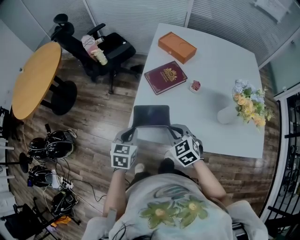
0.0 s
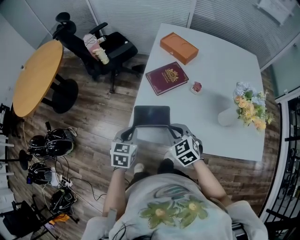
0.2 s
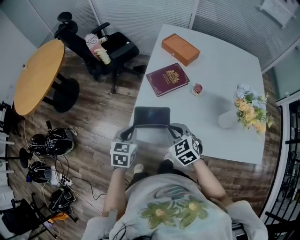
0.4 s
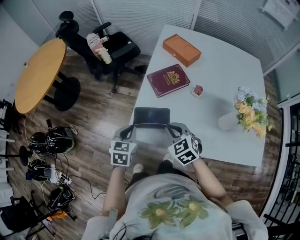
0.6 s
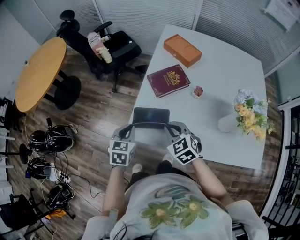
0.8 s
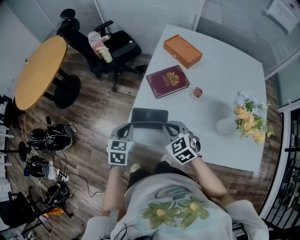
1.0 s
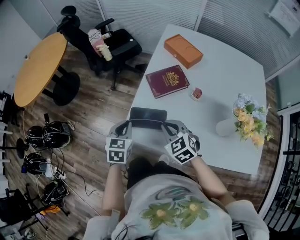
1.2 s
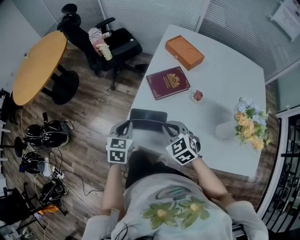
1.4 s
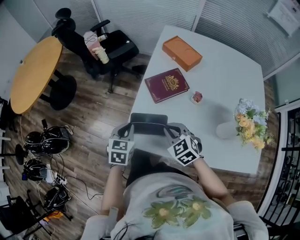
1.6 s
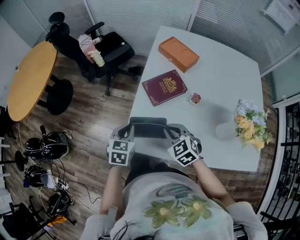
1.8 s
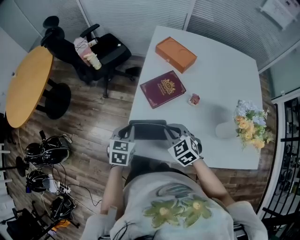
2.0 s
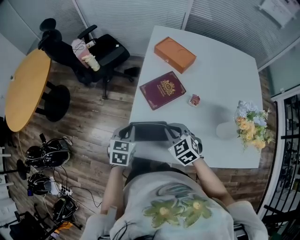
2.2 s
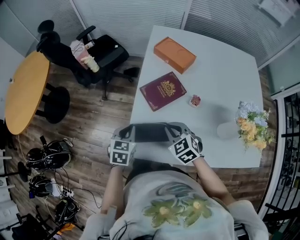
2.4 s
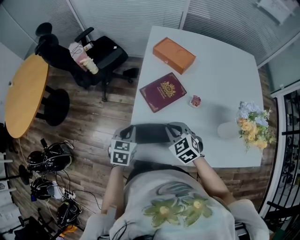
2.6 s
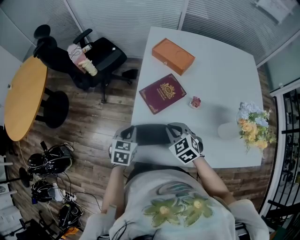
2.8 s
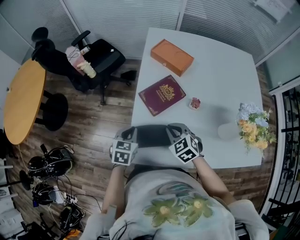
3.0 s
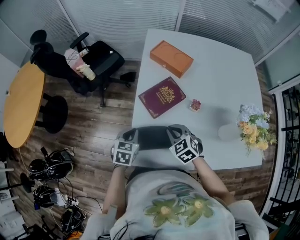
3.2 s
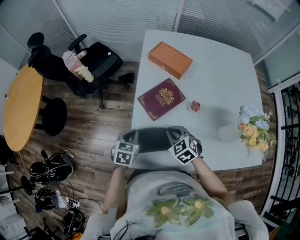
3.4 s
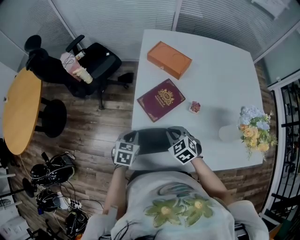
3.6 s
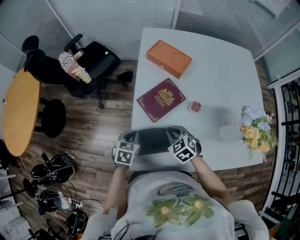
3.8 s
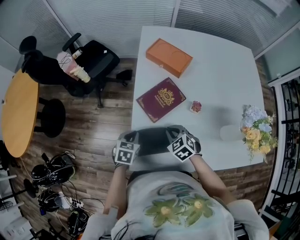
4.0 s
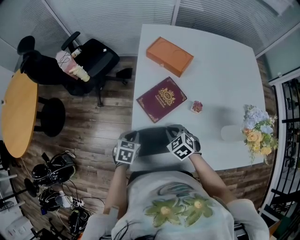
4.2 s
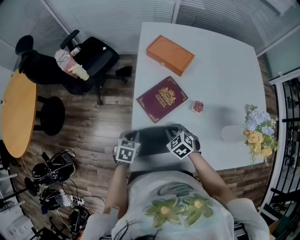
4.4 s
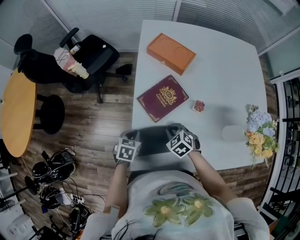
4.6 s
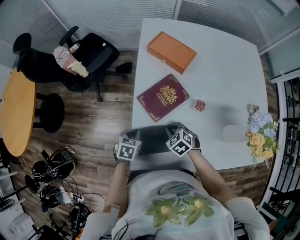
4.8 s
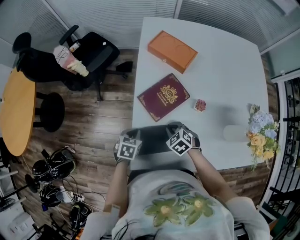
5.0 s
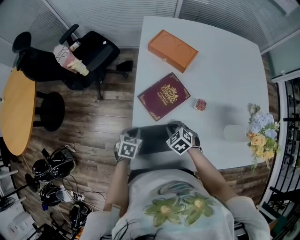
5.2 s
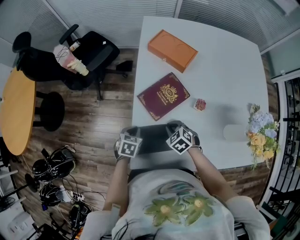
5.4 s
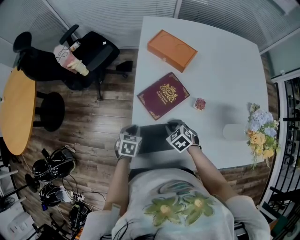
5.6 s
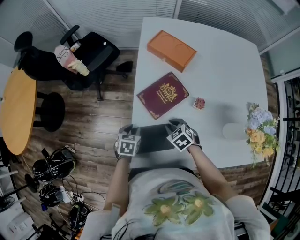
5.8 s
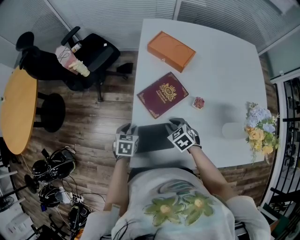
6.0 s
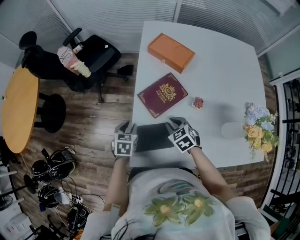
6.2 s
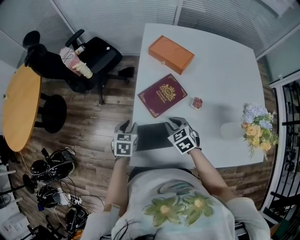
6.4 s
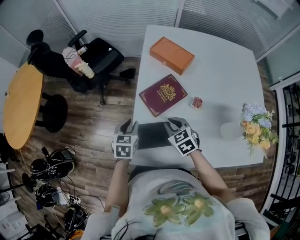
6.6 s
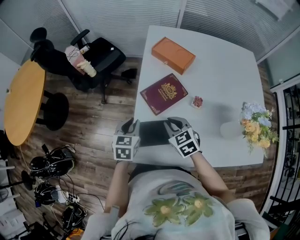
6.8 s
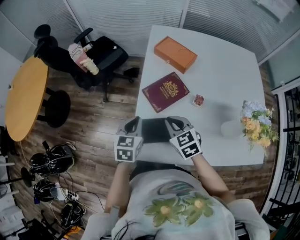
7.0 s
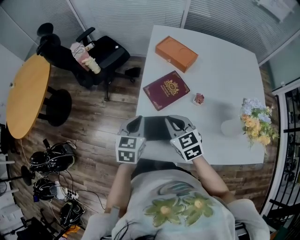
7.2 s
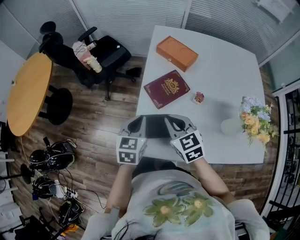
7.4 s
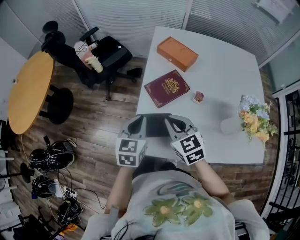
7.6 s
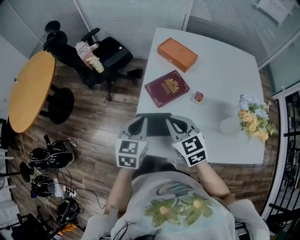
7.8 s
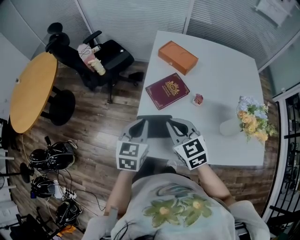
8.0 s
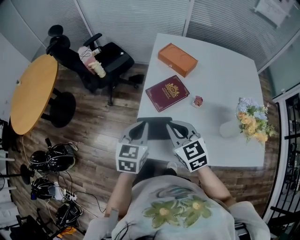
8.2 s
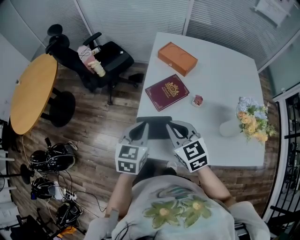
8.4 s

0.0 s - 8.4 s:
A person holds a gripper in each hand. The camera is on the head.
0.0 s - 1.4 s: Both grippers move forward, about 5 cm.
1.4 s - 2.8 s: The grippers both shift forward by some 10 cm.
2.8 s - 4.2 s: The grippers both shift downward by approximately 10 cm.
4.2 s - 5.6 s: The grippers stay close to where they were, moving slightly.
5.6 s - 7.0 s: The grippers both shift upward by roughly 15 cm. The left gripper rotates roughly 30 degrees. The right gripper turns by approximately 20 degrees.
7.0 s - 8.4 s: The two grippers go roughly 10 cm upward and backward.

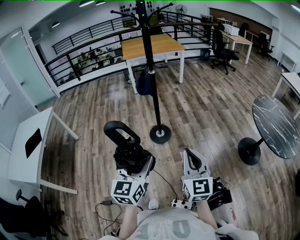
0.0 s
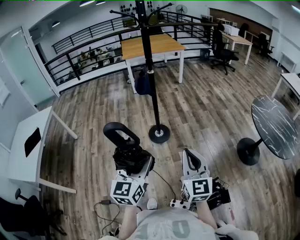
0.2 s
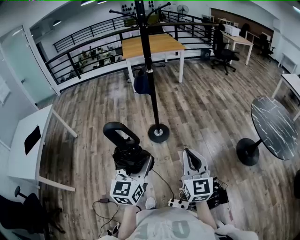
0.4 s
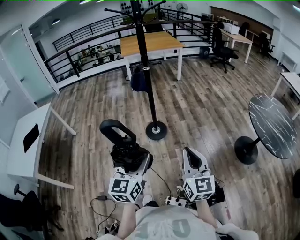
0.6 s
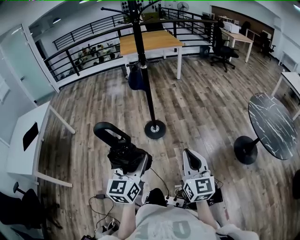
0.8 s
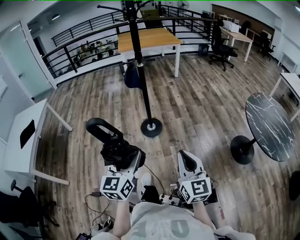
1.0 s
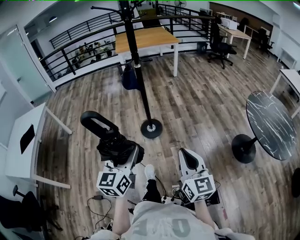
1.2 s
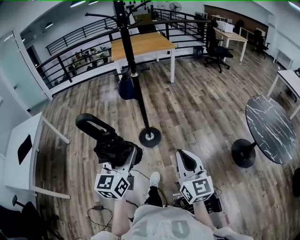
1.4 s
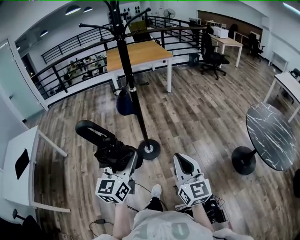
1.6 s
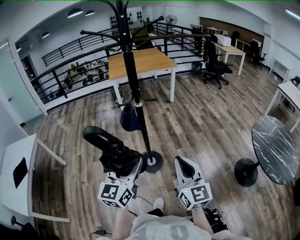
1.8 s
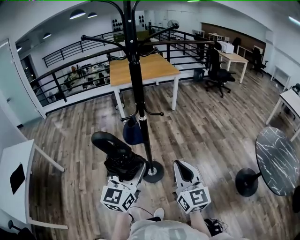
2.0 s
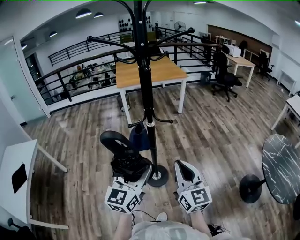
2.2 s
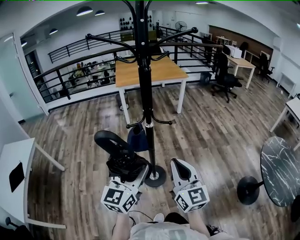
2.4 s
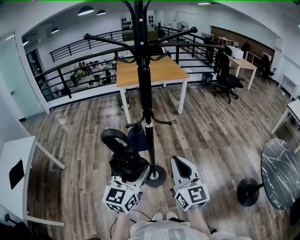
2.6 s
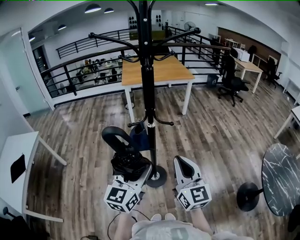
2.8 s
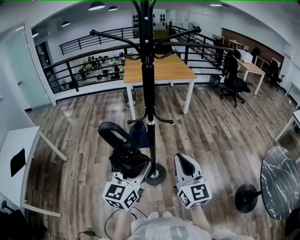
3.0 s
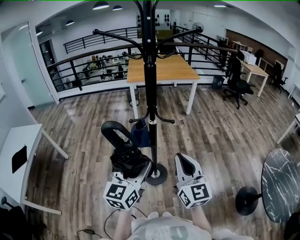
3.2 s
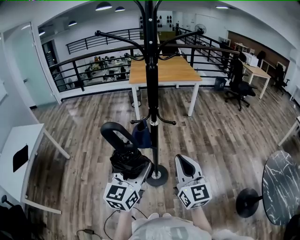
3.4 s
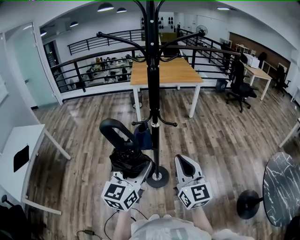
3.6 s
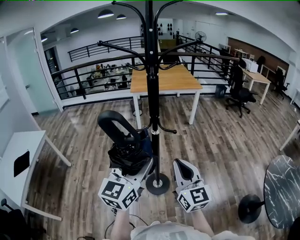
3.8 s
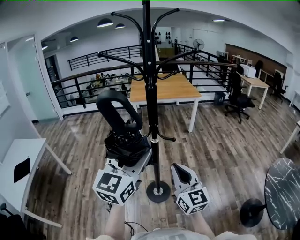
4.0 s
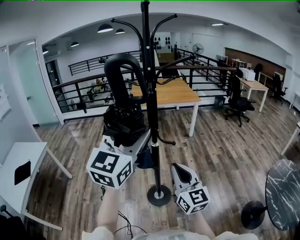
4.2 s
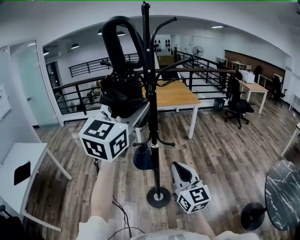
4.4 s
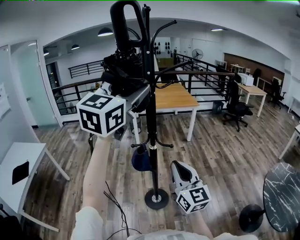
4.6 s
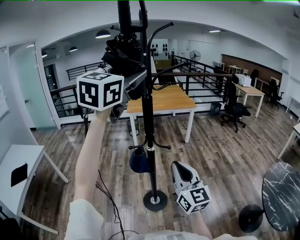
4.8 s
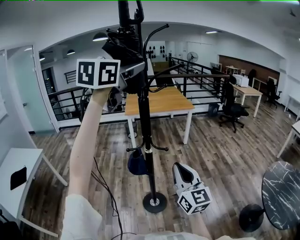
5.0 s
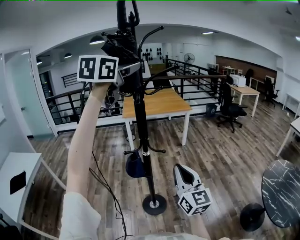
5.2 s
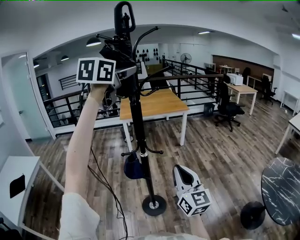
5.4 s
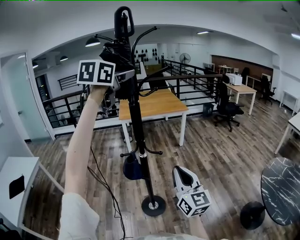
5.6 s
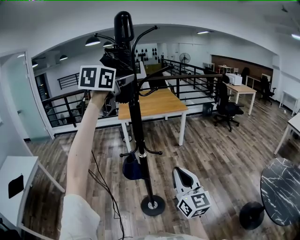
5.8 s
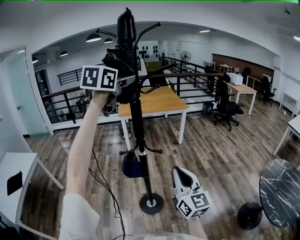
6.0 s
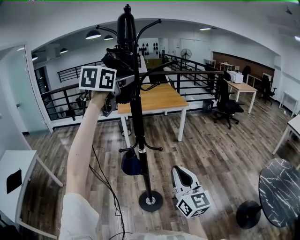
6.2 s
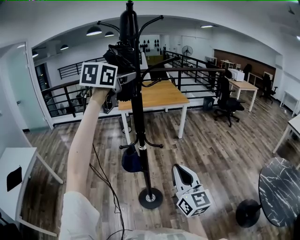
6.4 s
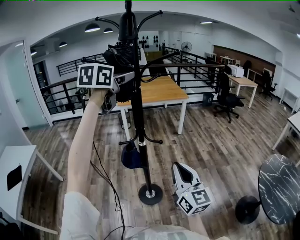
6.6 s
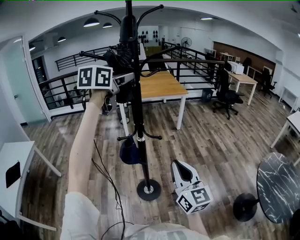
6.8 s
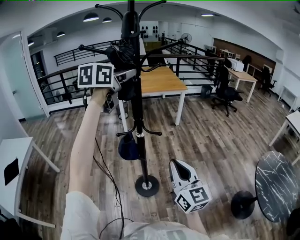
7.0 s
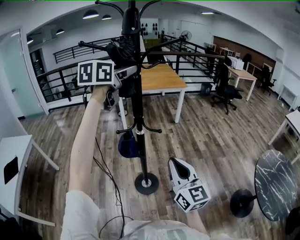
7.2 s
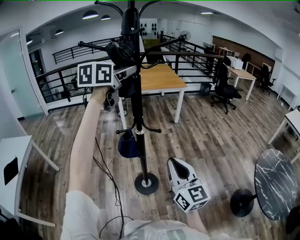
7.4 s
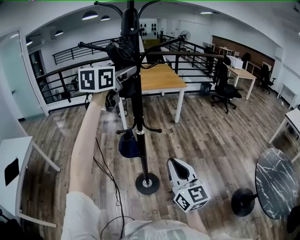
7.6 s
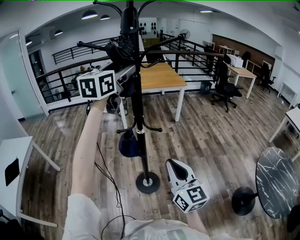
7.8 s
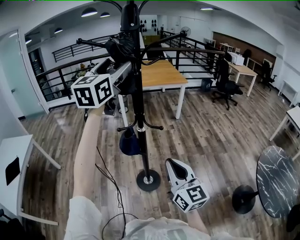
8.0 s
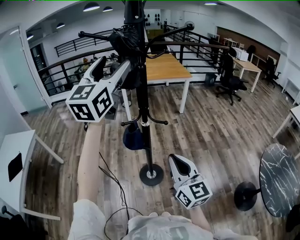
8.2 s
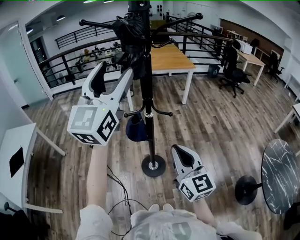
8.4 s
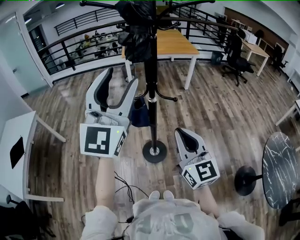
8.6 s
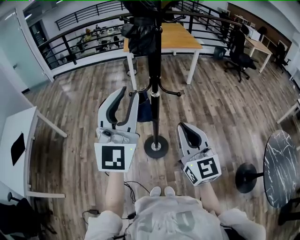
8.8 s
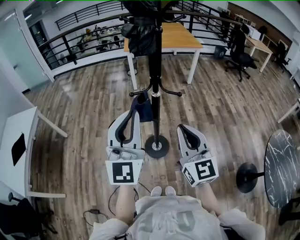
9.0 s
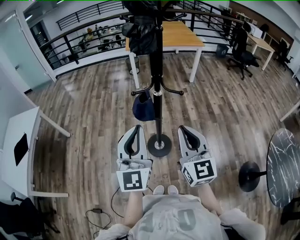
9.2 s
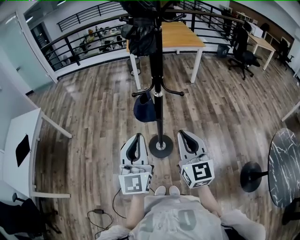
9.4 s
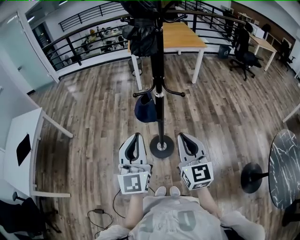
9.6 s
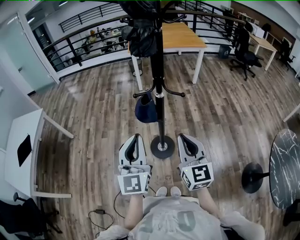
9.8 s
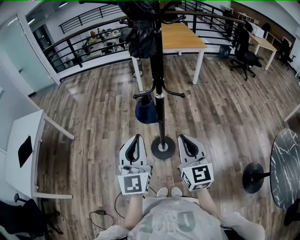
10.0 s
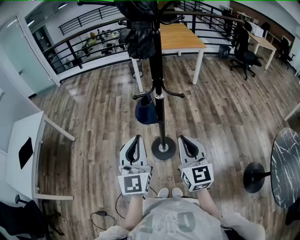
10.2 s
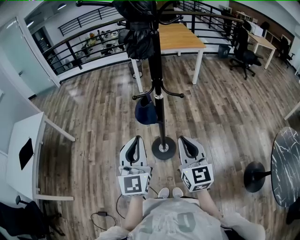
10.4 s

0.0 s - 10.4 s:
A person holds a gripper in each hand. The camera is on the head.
0.0 s - 1.4 s: The left gripper goes some 10 cm forward and to the right. The right gripper heads to the right and forward, covering roughly 10 cm.
1.4 s - 3.0 s: The two grippers go approximately 35 cm forward.
3.0 s - 4.4 s: The left gripper goes approximately 30 cm upward, and rotates roughly 30 degrees.
4.4 s - 6.0 s: The left gripper heads forward, covering approximately 15 cm, and turns by approximately 20 degrees. Meanwhile the right gripper is displaced to the right by roughly 5 cm.
6.0 s - 7.4 s: The left gripper travels downward by some 10 cm.
7.4 s - 9.0 s: The left gripper moves backward and downward, some 30 cm, swivels roughly 40 degrees, and closes up; the right gripper changes place by some 5 cm.
9.0 s - 10.4 s: The right gripper goes approximately 5 cm downward. Meanwhile the left gripper heads downward, covering roughly 10 cm.

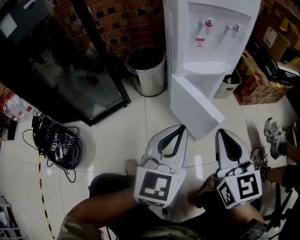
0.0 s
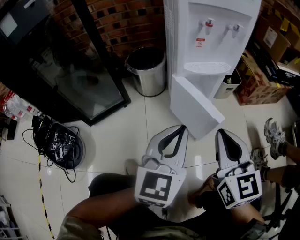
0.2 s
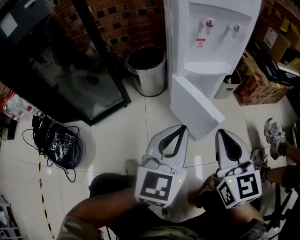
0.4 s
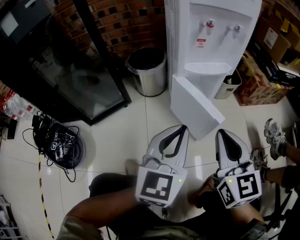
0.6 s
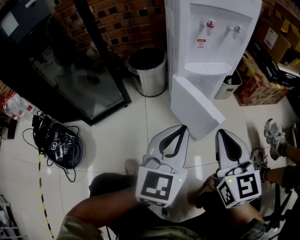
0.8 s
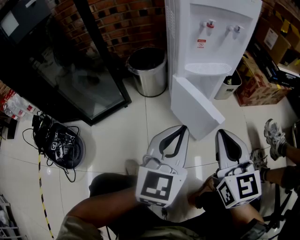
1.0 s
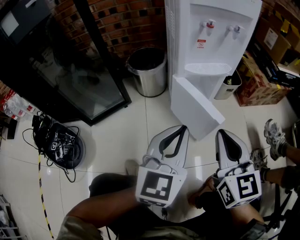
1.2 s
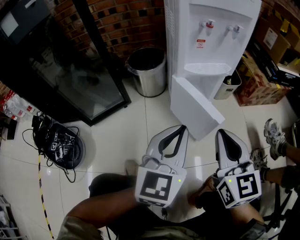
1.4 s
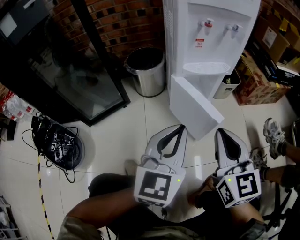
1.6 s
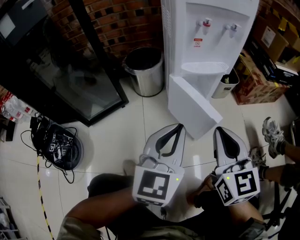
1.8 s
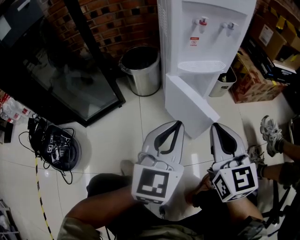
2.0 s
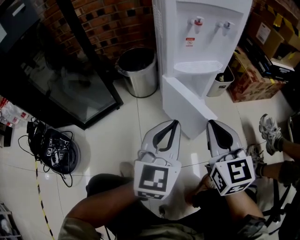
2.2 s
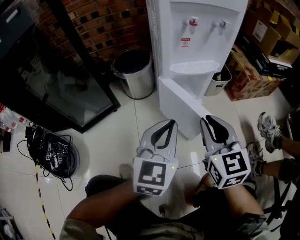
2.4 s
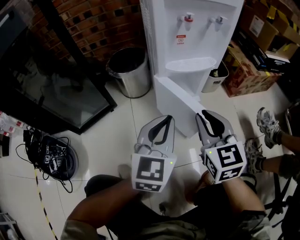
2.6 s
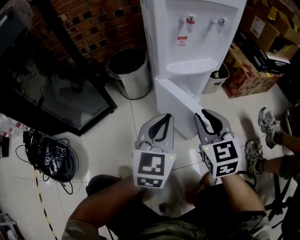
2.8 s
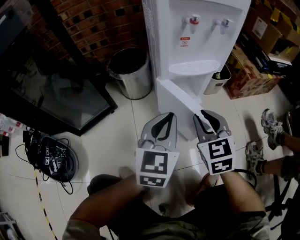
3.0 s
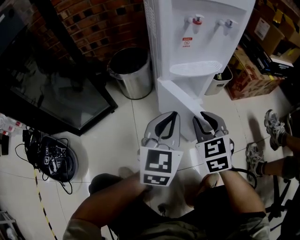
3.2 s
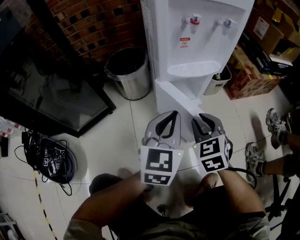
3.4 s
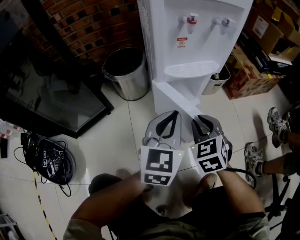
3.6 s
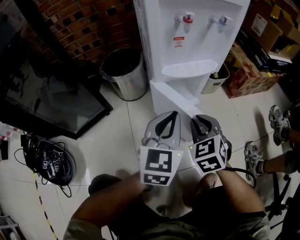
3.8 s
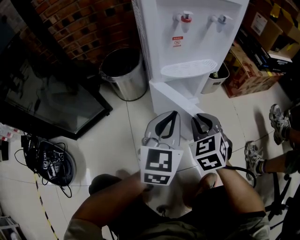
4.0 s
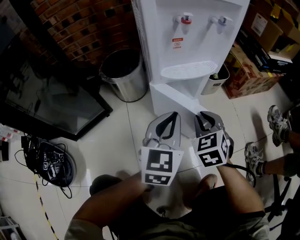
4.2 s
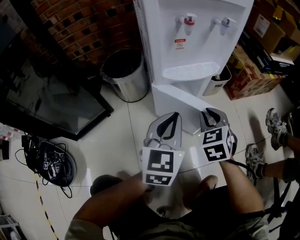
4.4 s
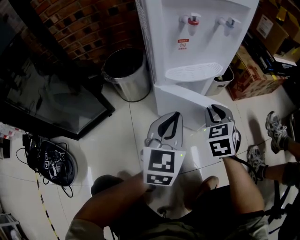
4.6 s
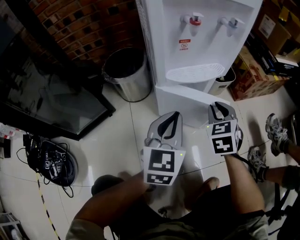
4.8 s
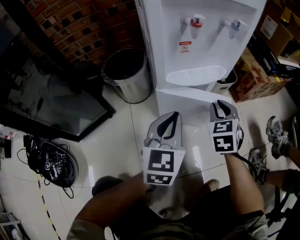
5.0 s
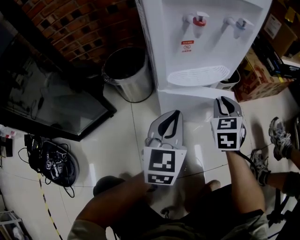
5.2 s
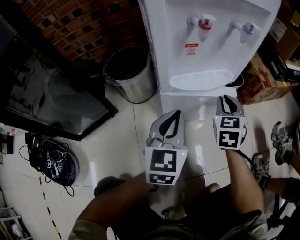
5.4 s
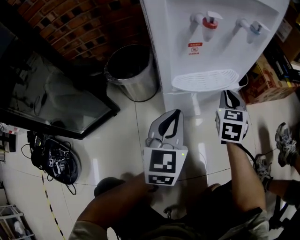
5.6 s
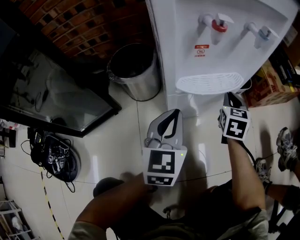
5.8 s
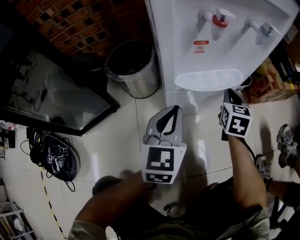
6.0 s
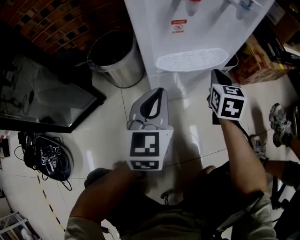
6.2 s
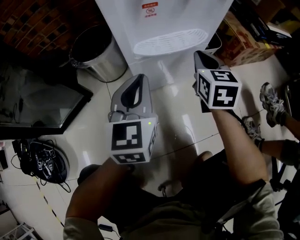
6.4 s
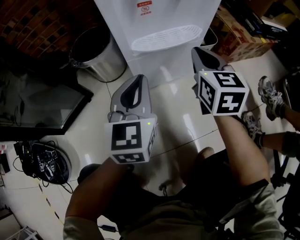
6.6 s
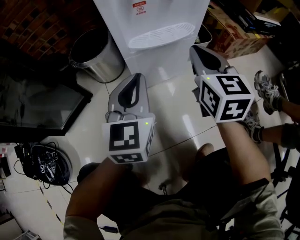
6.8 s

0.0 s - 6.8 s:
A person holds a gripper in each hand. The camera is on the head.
0.0 s - 1.4 s: Neither gripper changes place.
1.4 s - 2.8 s: The grippers both shift forward and downward by roughly 10 cm.
2.8 s - 4.0 s: The right gripper heads downward, covering some 10 cm, and turns by about 20 degrees, while the left gripper ends up some 5 cm from where it was.
4.0 s - 5.4 s: The right gripper is displaced forward by roughly 15 cm, and rotates some 20 degrees; the left gripper heads forward, covering about 5 cm.
5.4 s - 6.8 s: The right gripper moves upward and backward, approximately 10 cm, and swivels roughly 20 degrees.
